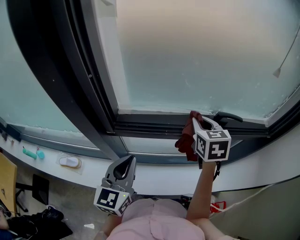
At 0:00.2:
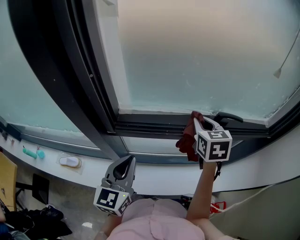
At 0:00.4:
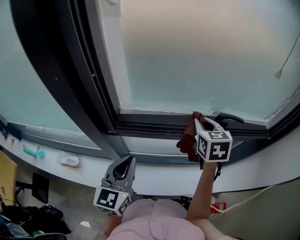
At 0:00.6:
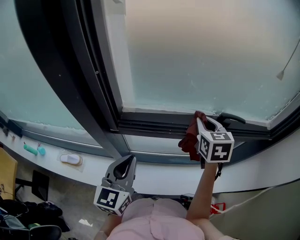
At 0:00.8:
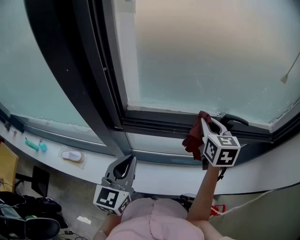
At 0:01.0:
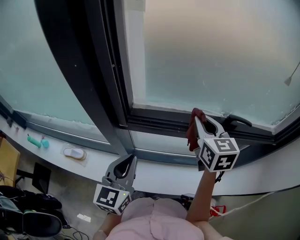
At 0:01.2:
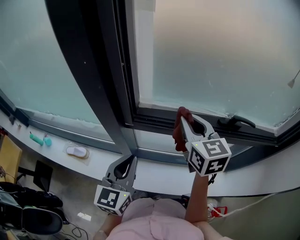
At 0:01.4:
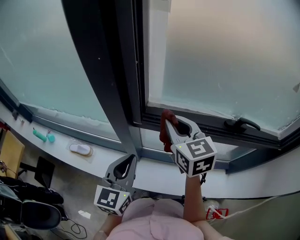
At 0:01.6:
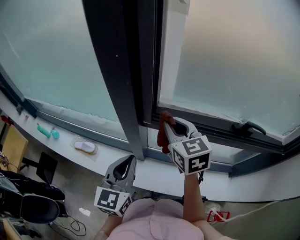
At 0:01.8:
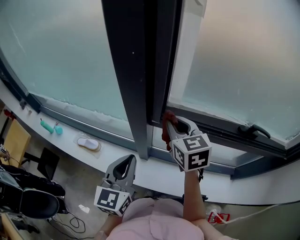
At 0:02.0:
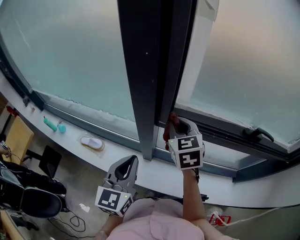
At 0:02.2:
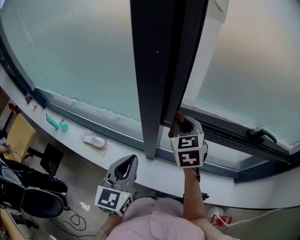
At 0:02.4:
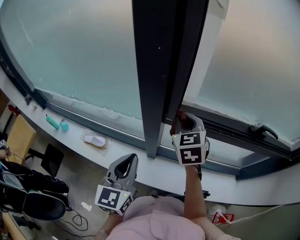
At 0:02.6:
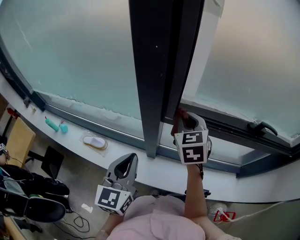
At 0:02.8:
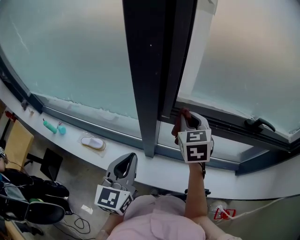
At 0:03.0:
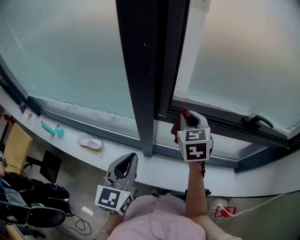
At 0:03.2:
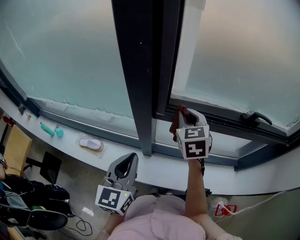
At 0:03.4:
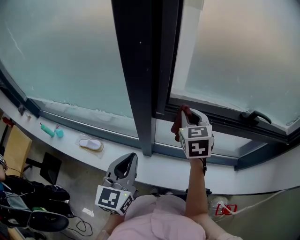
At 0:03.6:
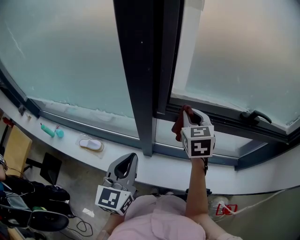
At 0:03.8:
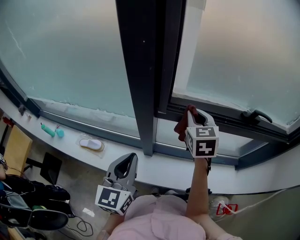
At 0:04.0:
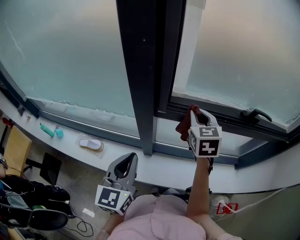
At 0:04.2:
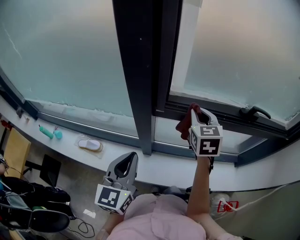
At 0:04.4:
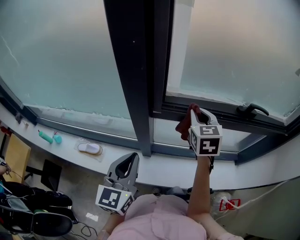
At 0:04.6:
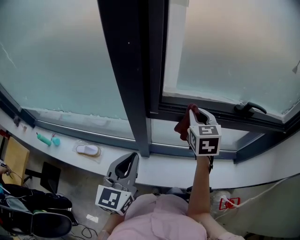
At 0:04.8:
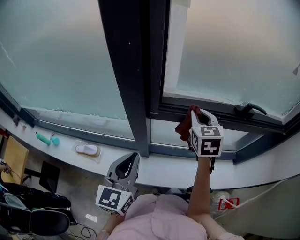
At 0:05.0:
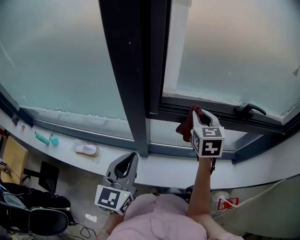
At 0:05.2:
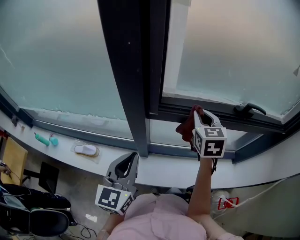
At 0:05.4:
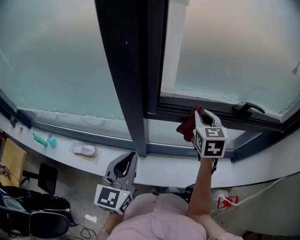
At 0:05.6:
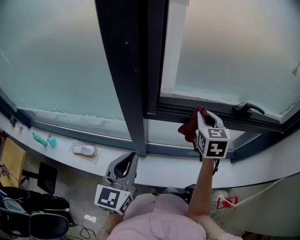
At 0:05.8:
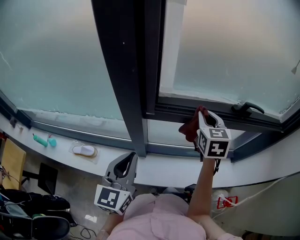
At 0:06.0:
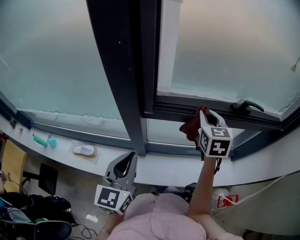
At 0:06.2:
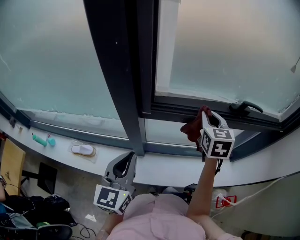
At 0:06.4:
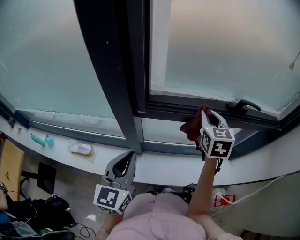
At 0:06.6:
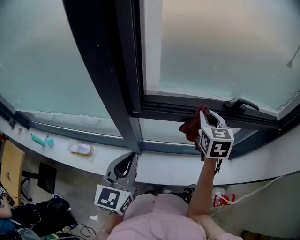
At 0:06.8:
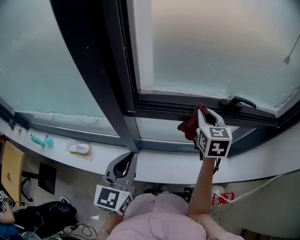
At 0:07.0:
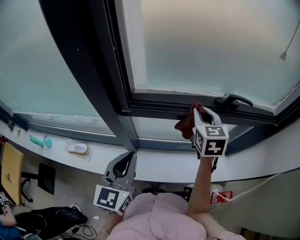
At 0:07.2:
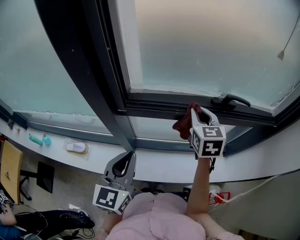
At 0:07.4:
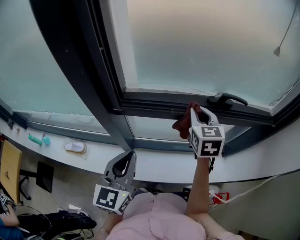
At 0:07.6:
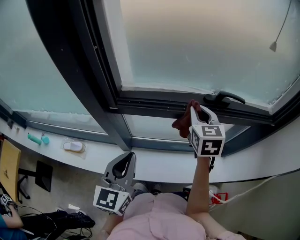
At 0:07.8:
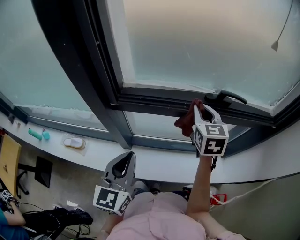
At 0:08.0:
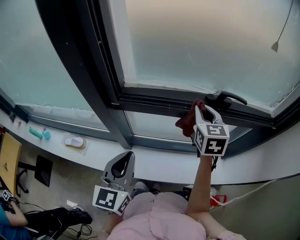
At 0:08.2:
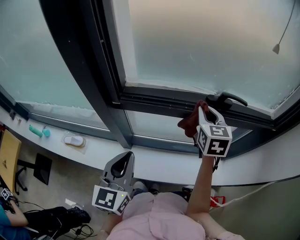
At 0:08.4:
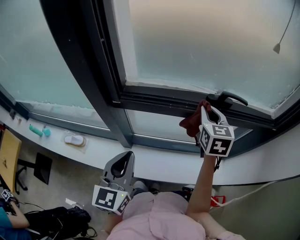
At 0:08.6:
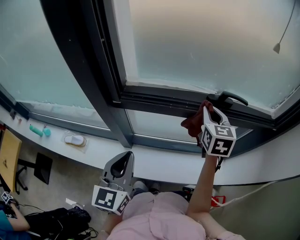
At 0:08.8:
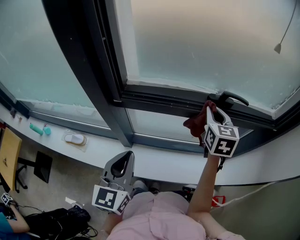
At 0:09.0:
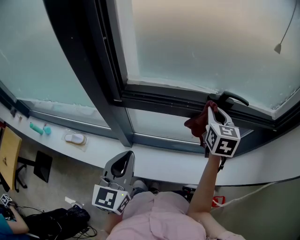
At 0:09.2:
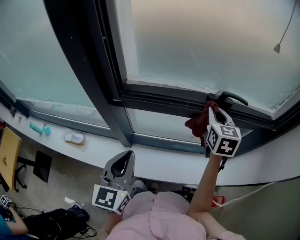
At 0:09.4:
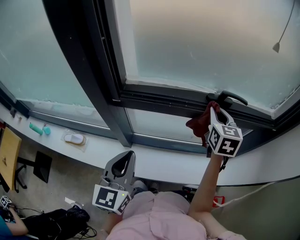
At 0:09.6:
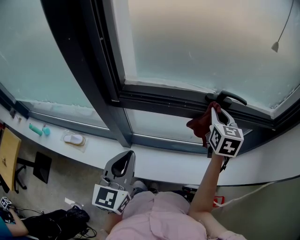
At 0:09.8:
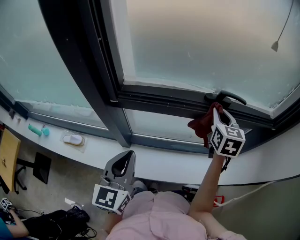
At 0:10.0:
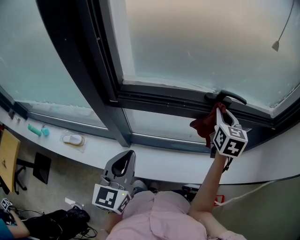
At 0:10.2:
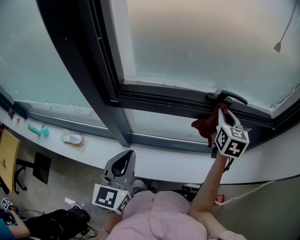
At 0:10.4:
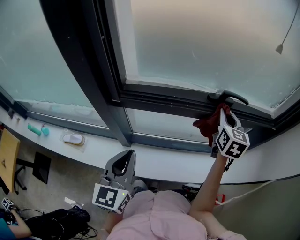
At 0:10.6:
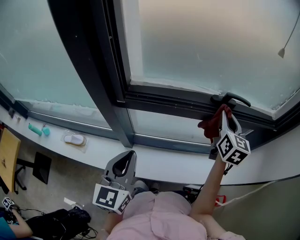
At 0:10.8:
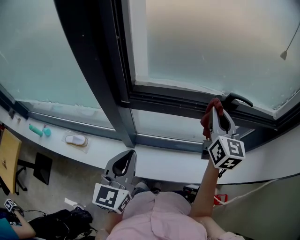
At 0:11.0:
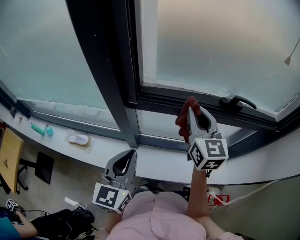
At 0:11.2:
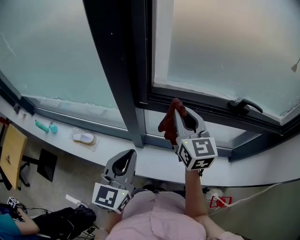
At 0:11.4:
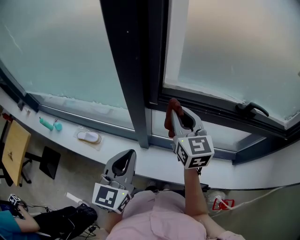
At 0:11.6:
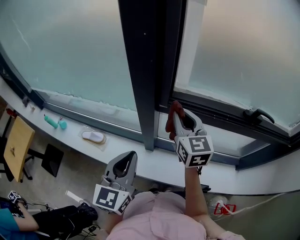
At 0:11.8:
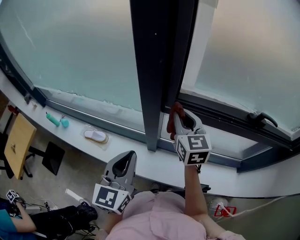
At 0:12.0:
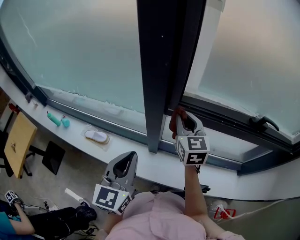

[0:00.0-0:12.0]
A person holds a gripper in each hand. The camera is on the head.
0:00.0 to 0:01.6: The left gripper is displaced to the left and backward by roughly 10 cm. The right gripper goes approximately 25 cm to the left, and changes its angle by roughly 30 degrees.
0:01.6 to 0:03.0: The left gripper shifts some 5 cm to the left. Meanwhile the right gripper rotates roughly 20 degrees.
0:03.0 to 0:04.4: The right gripper shifts about 5 cm to the right.
0:04.4 to 0:06.0: The right gripper moves to the right, about 5 cm.
0:06.0 to 0:07.6: The two grippers go roughly 10 cm to the right.
0:07.6 to 0:09.0: The right gripper moves to the right, some 5 cm.
0:09.0 to 0:10.4: The right gripper moves to the right, some 5 cm.
0:10.4 to 0:12.0: The left gripper shifts approximately 15 cm to the left; the right gripper is displaced to the left by roughly 40 cm, and rotates some 30 degrees.

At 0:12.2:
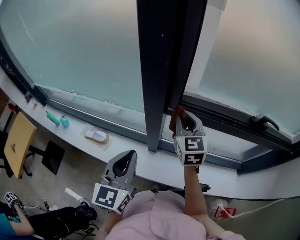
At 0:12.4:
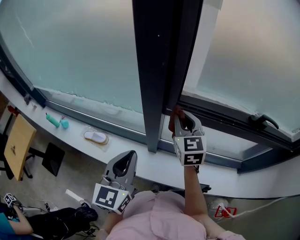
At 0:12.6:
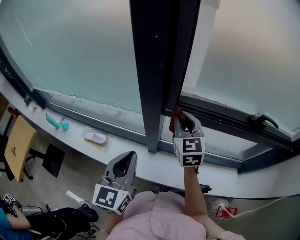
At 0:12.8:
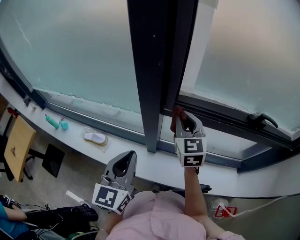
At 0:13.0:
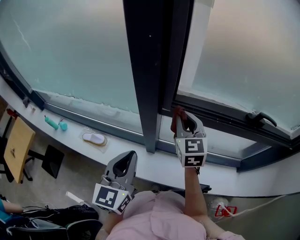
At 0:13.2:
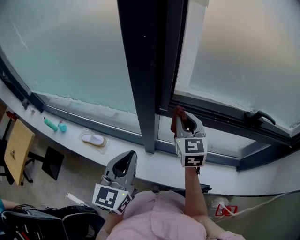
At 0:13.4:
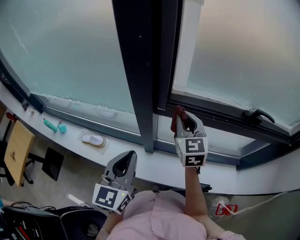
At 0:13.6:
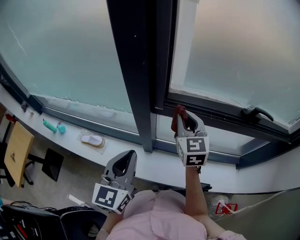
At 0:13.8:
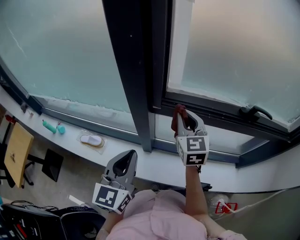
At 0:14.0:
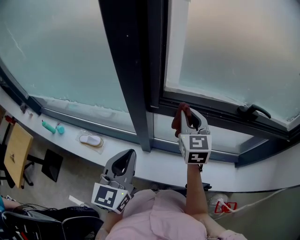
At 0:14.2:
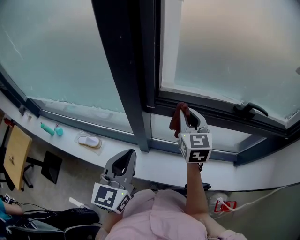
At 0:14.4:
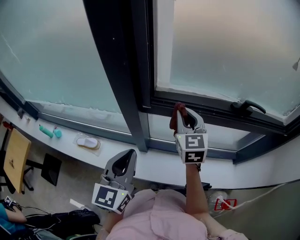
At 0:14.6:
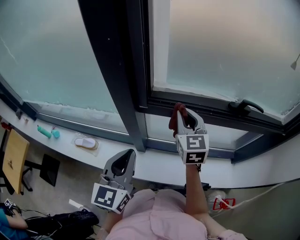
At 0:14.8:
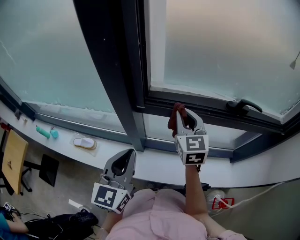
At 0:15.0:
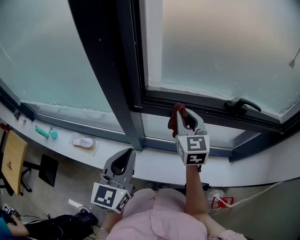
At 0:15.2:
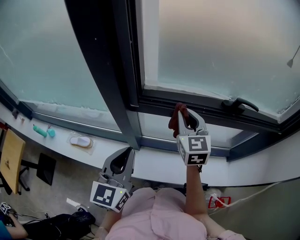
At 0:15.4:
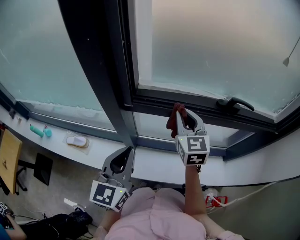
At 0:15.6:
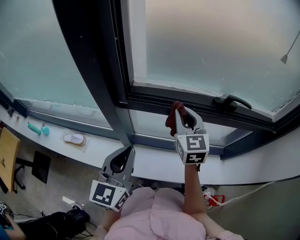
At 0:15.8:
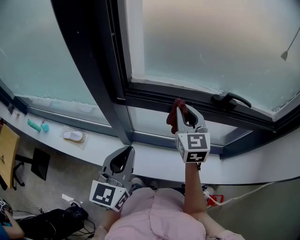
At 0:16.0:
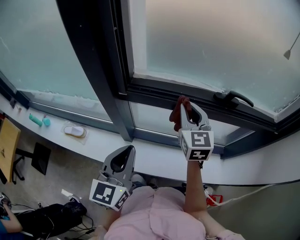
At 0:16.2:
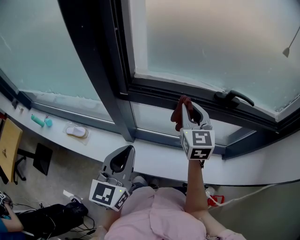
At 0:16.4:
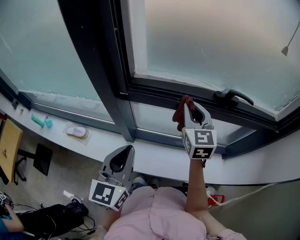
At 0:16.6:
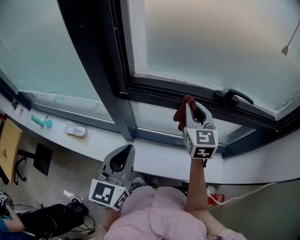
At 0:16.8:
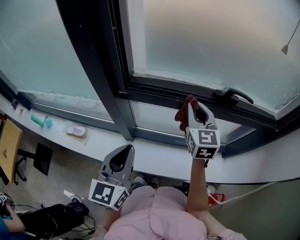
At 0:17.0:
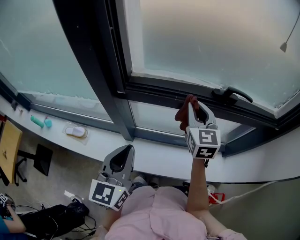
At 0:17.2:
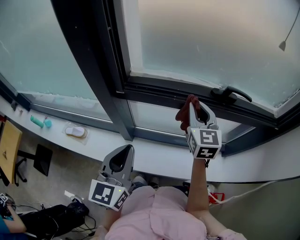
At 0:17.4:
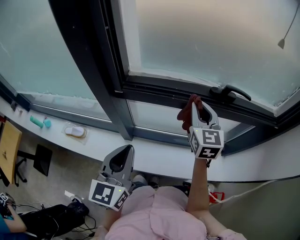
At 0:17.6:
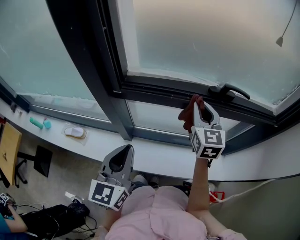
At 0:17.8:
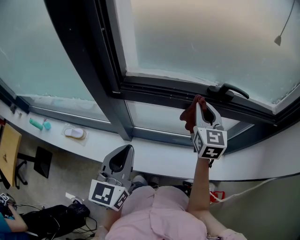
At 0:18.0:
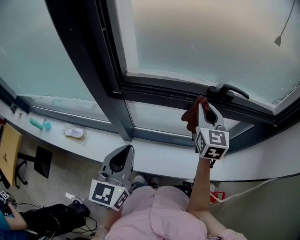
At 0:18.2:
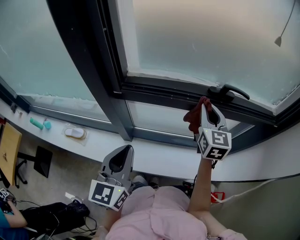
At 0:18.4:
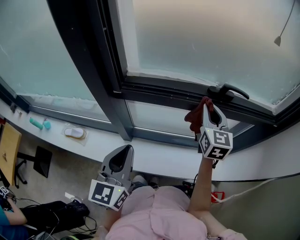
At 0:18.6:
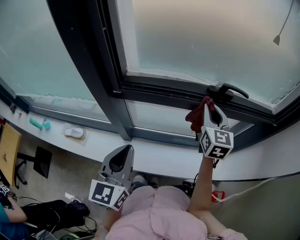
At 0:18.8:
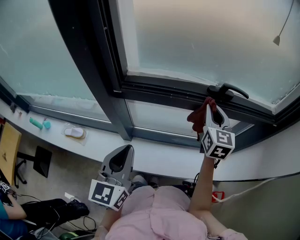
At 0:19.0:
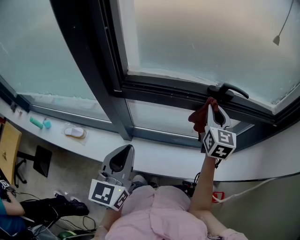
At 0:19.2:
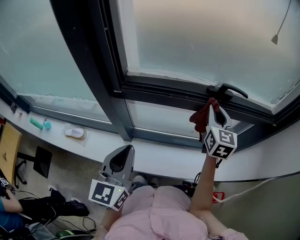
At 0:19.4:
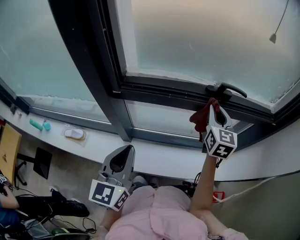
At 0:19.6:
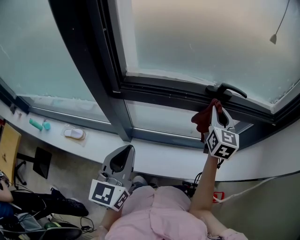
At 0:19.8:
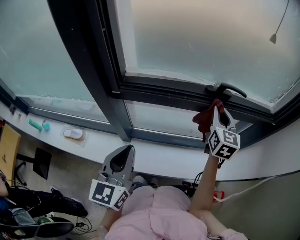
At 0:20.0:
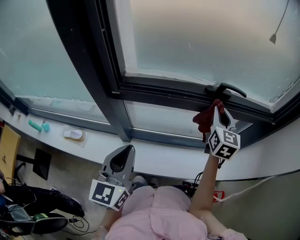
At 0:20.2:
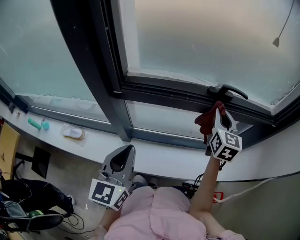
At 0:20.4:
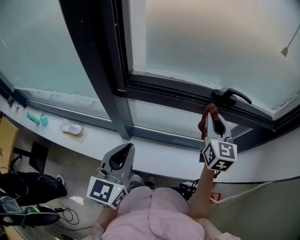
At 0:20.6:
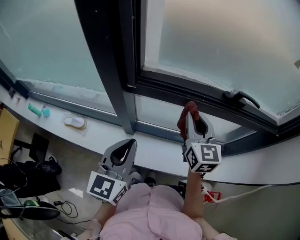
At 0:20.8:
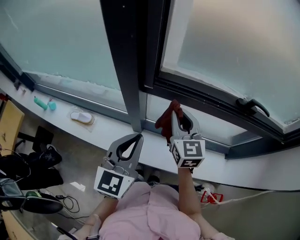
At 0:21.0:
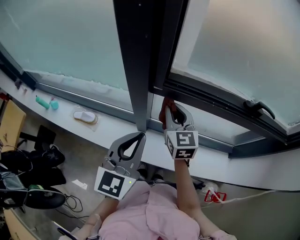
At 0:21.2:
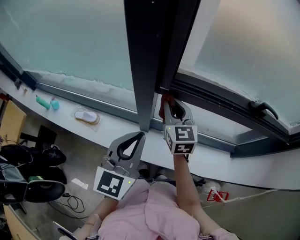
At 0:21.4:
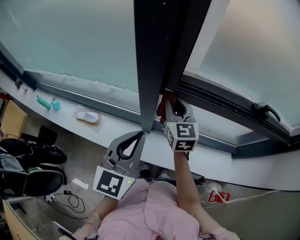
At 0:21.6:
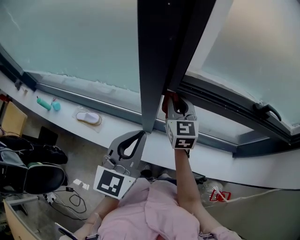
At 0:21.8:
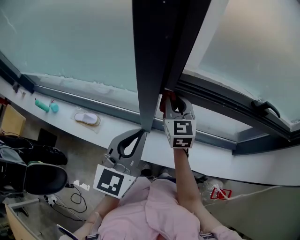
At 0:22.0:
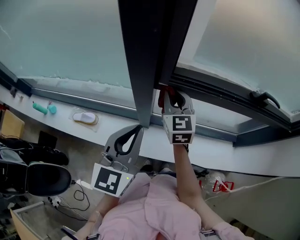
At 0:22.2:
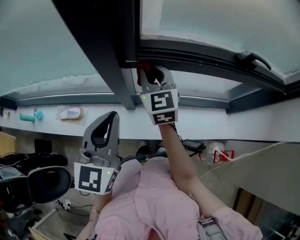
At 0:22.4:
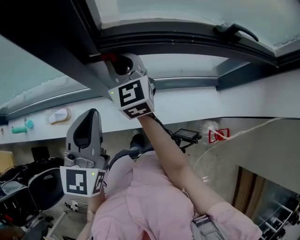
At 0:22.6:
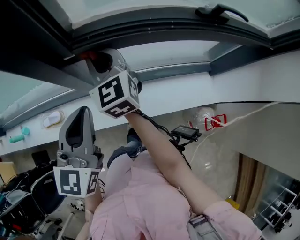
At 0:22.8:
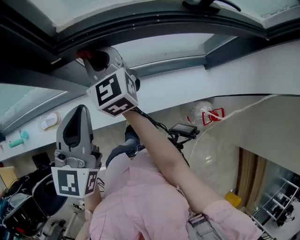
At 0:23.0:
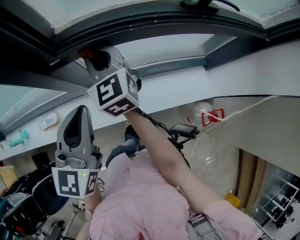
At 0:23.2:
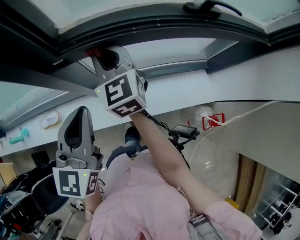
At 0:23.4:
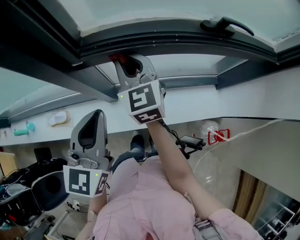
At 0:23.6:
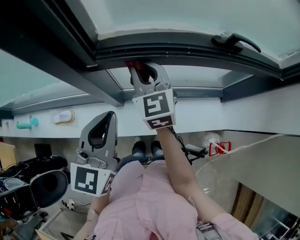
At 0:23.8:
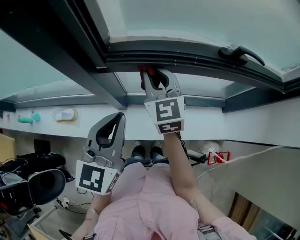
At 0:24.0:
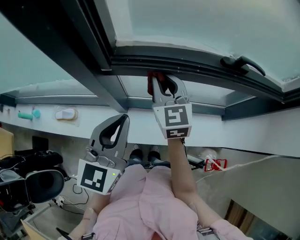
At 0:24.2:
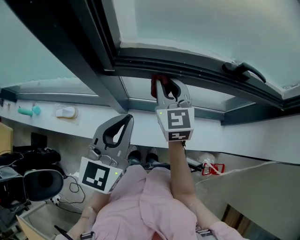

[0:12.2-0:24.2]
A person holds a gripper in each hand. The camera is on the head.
0:12.2 to 0:13.8: The right gripper is displaced to the right by some 5 cm.
0:13.8 to 0:15.2: Both grippers travel together to the right, roughly 5 cm.
0:15.2 to 0:16.6: Both grippers move to the right, some 5 cm.
0:16.6 to 0:18.2: The right gripper shifts roughly 10 cm to the right.
0:18.2 to 0:19.8: The right gripper travels to the right by roughly 5 cm.
0:19.8 to 0:21.2: The right gripper goes about 40 cm to the left, and turns by approximately 30 degrees; the left gripper travels to the left by roughly 15 cm.
0:21.2 to 0:22.6: The left gripper shifts by approximately 5 cm.
0:22.6 to 0:24.2: The right gripper moves to the right, approximately 10 cm. The left gripper is displaced to the right by some 5 cm.
